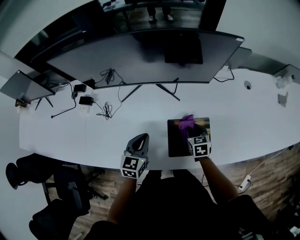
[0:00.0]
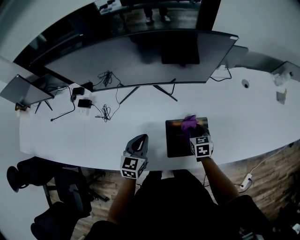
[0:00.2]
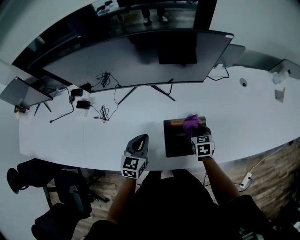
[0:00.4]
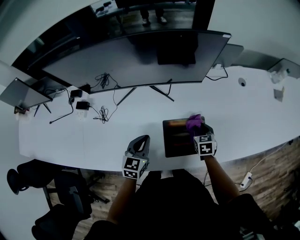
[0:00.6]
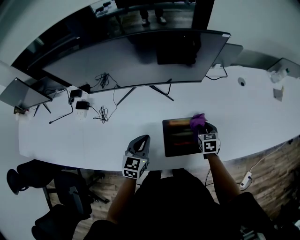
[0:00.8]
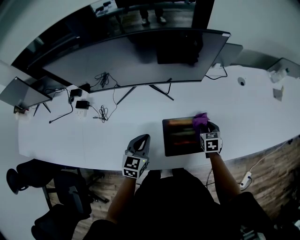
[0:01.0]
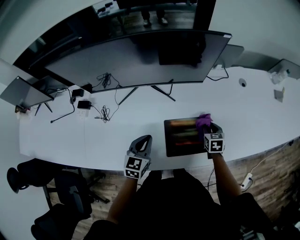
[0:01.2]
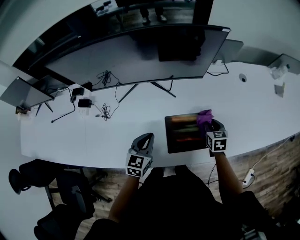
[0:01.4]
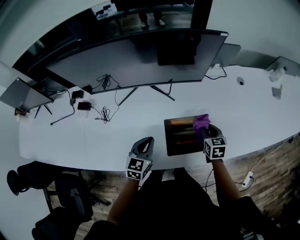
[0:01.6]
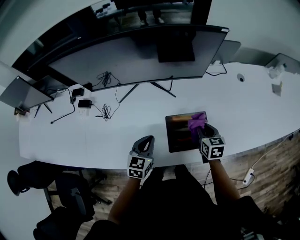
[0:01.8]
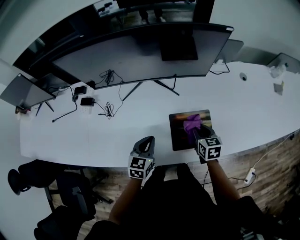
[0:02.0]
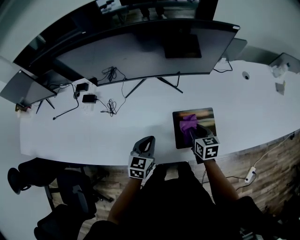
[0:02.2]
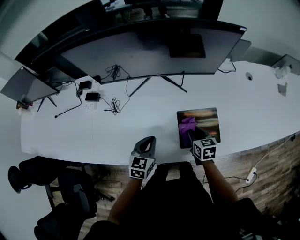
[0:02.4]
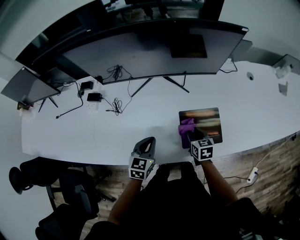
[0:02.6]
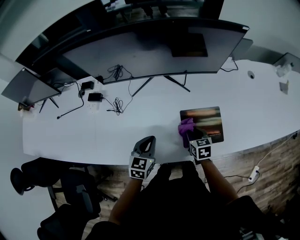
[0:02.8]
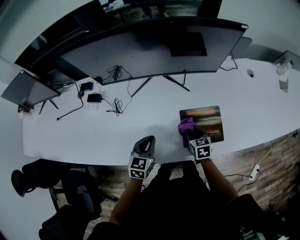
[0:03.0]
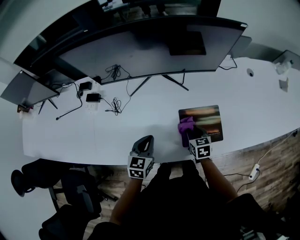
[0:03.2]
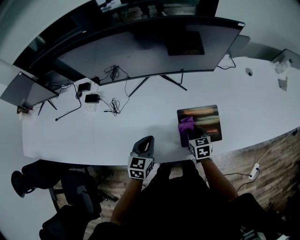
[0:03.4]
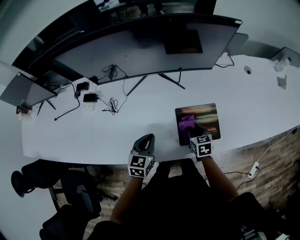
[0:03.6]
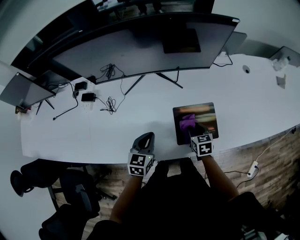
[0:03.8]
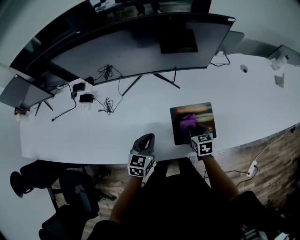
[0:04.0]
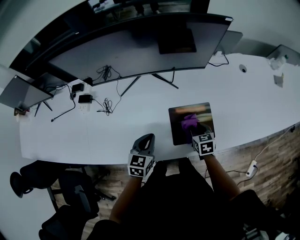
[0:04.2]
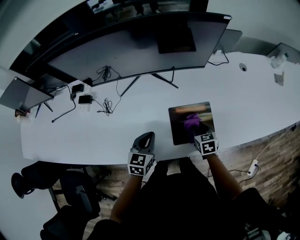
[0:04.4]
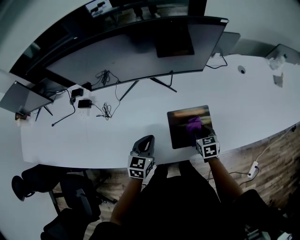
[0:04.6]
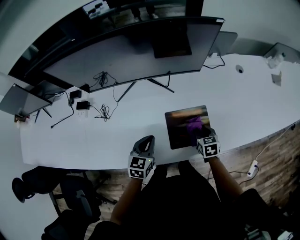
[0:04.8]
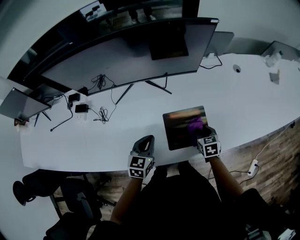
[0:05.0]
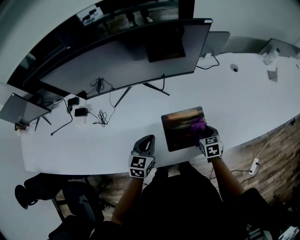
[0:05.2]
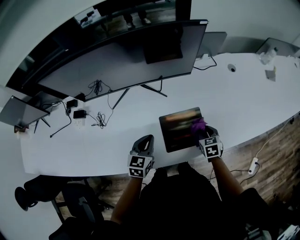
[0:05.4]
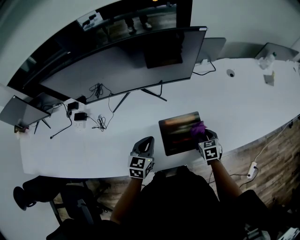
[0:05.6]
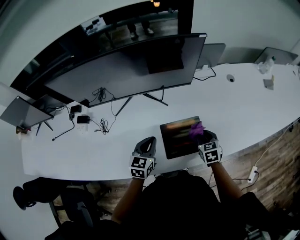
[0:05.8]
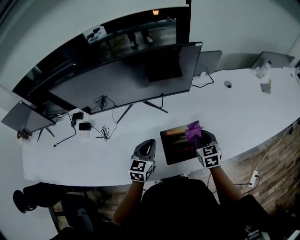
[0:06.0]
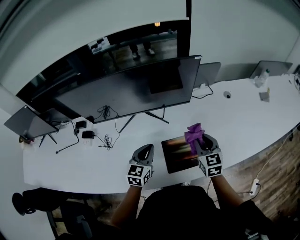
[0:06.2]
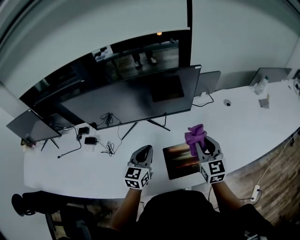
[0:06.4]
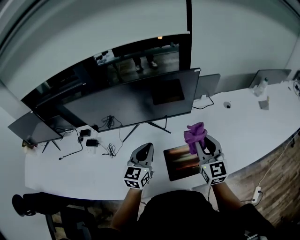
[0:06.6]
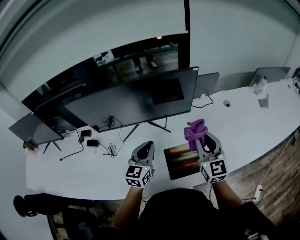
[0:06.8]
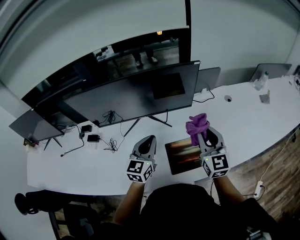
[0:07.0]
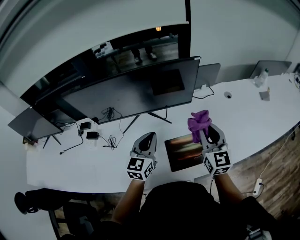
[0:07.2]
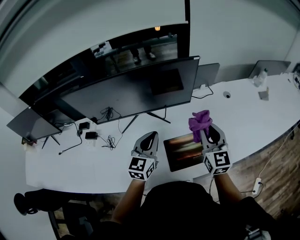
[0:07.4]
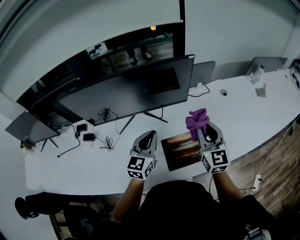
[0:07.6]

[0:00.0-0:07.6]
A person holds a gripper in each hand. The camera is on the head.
0:00.0 to 0:01.6: The right gripper is displaced to the right and upward by some 10 cm.
0:01.6 to 0:03.0: The right gripper is displaced to the left by about 15 cm; the left gripper moves to the left, approximately 10 cm.
0:03.0 to 0:04.6: The left gripper goes roughly 5 cm to the right; the right gripper is displaced to the right by about 10 cm.
0:04.6 to 0:06.0: The left gripper travels forward and upward by approximately 10 cm, while the right gripper goes approximately 10 cm upward.
0:06.0 to 0:07.6: The right gripper moves upward, about 20 cm, and angles its fingers upward, by about 30 degrees. Meanwhile the left gripper is displaced upward by some 10 cm.

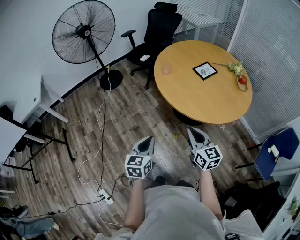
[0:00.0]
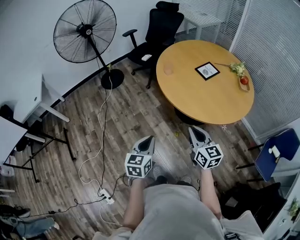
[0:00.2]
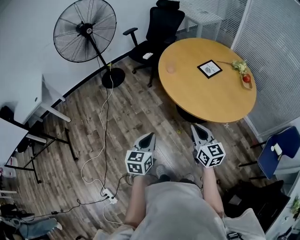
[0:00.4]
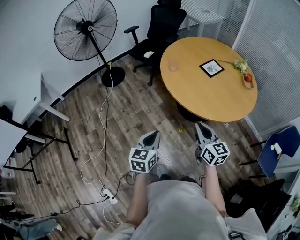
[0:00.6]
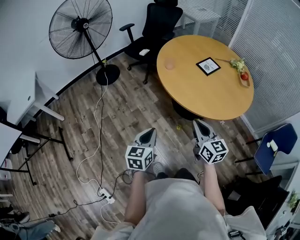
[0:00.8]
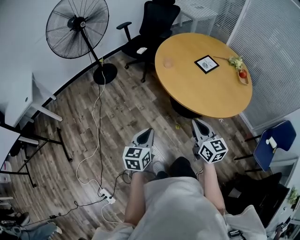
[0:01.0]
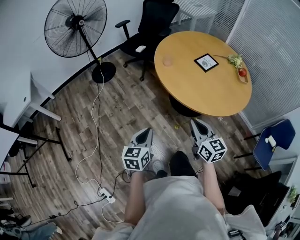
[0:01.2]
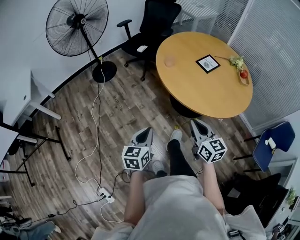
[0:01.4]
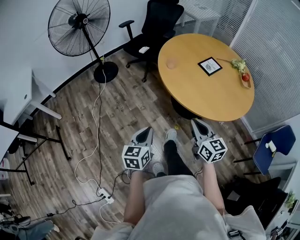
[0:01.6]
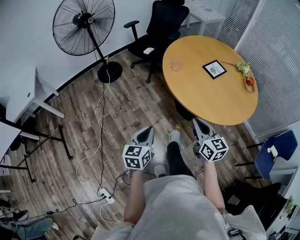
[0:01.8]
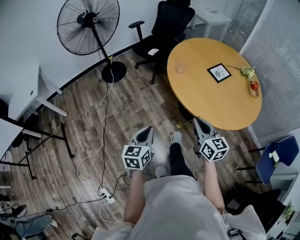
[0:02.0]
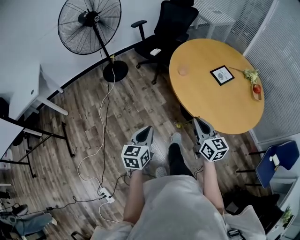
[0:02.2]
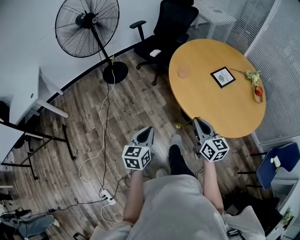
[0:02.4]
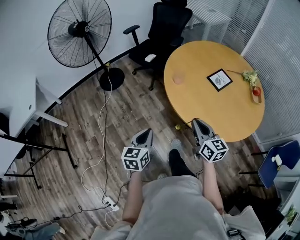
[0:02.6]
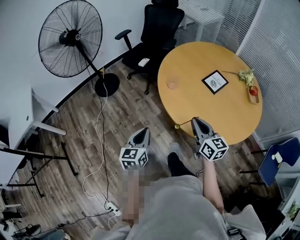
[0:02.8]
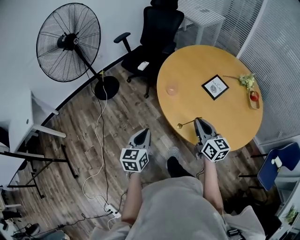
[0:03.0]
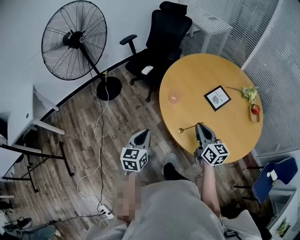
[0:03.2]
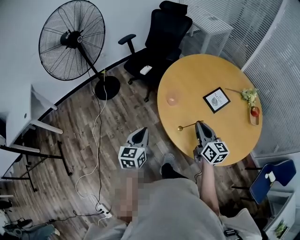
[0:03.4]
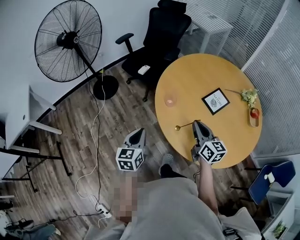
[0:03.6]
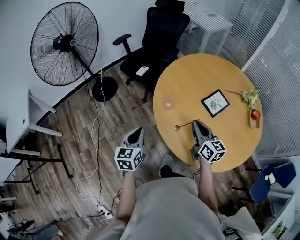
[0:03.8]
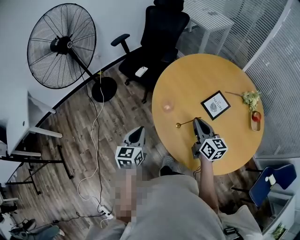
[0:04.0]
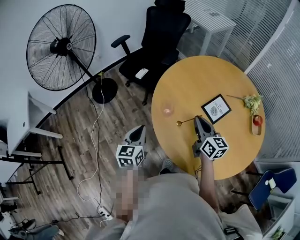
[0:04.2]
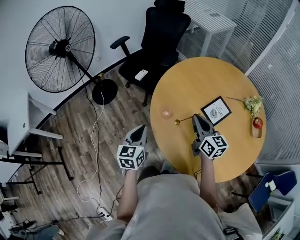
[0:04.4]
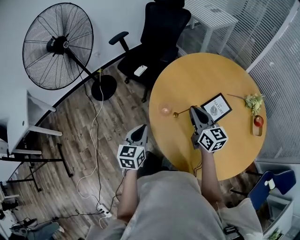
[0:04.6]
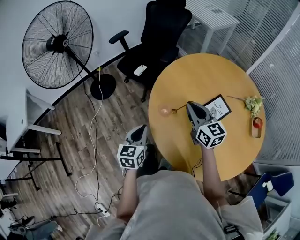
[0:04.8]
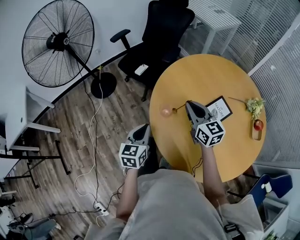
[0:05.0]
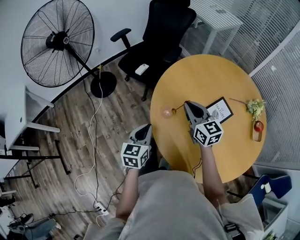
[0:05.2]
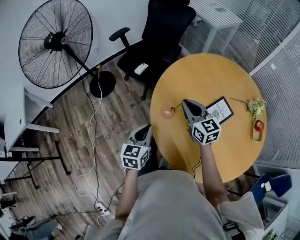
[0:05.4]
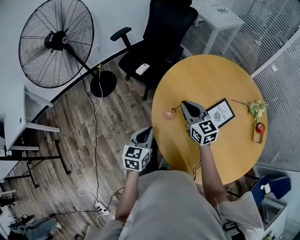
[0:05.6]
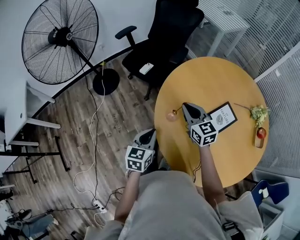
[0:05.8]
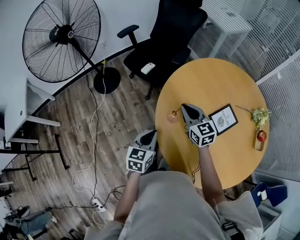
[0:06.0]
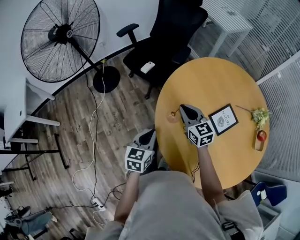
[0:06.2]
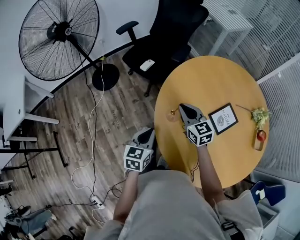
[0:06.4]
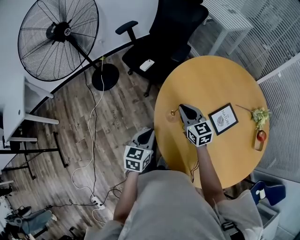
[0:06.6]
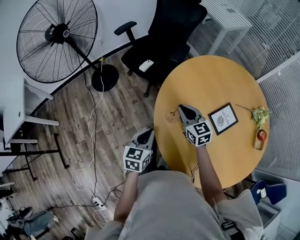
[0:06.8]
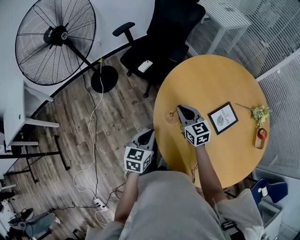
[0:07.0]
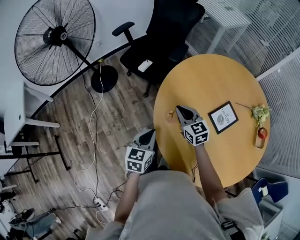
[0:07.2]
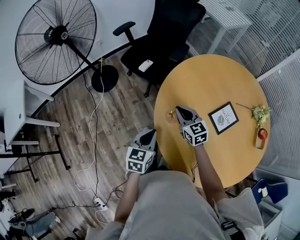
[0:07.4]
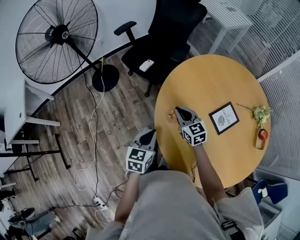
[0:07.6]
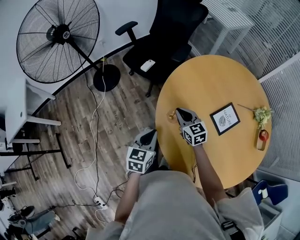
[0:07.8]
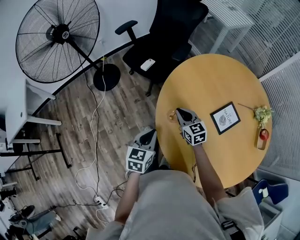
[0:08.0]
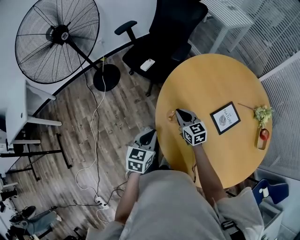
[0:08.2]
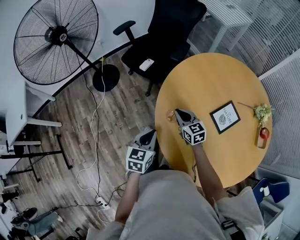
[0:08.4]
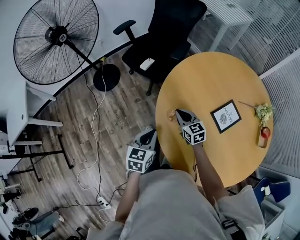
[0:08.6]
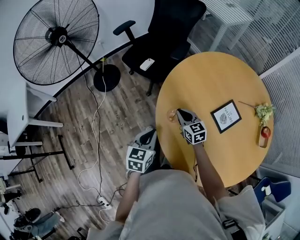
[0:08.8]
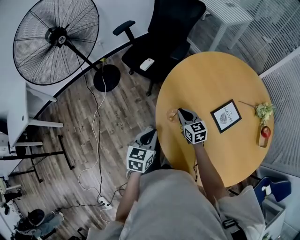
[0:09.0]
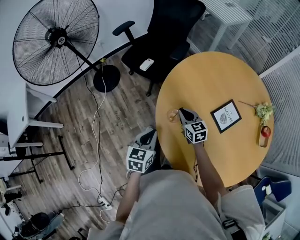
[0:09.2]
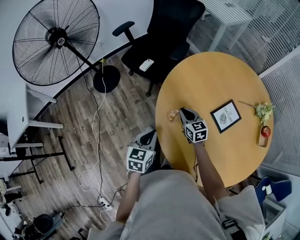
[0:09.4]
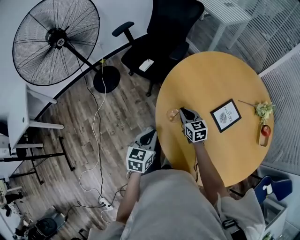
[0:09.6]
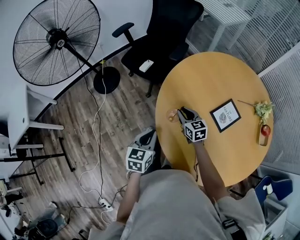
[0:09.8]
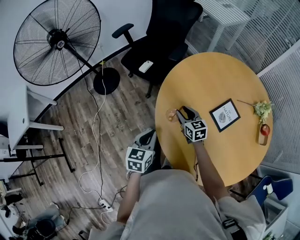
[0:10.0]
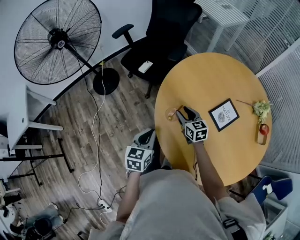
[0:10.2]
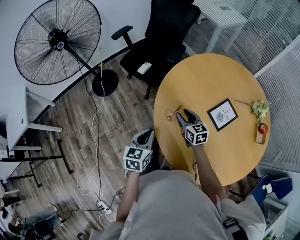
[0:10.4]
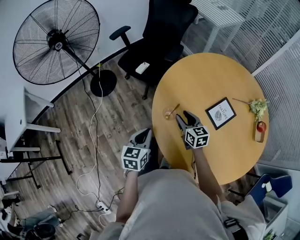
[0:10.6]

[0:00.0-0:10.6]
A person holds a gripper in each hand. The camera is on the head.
0:00.0 to 0:01.6: The two grippers go some 10 cm to the left and forward.
0:01.6 to 0:03.0: The two grippers go some 25 cm forward.
0:03.0 to 0:04.6: Both grippers travel together forward, approximately 20 cm.
0:04.6 to 0:06.0: The right gripper moves forward, to the left and downward, about 15 cm, and turns by about 20 degrees.
0:06.0 to 0:07.6: The right gripper goes roughly 5 cm downward.
0:07.6 to 0:09.0: The right gripper is displaced downward by approximately 5 cm.
0:09.0 to 0:10.6: The right gripper shifts by about 5 cm, and opens up.

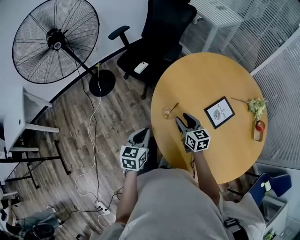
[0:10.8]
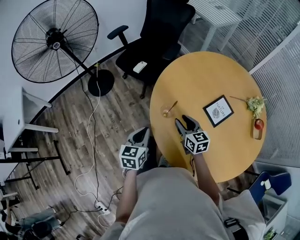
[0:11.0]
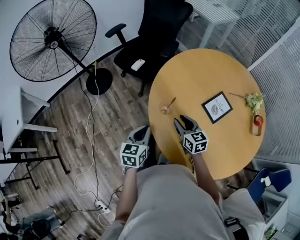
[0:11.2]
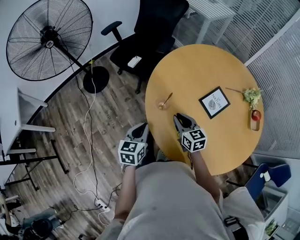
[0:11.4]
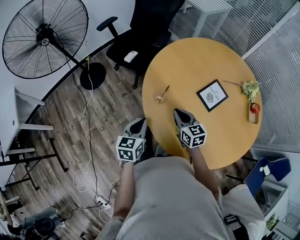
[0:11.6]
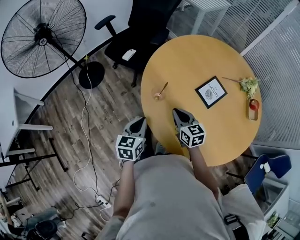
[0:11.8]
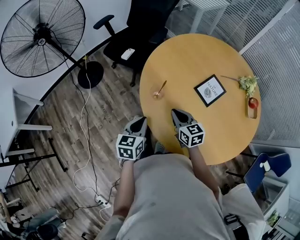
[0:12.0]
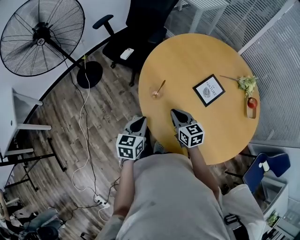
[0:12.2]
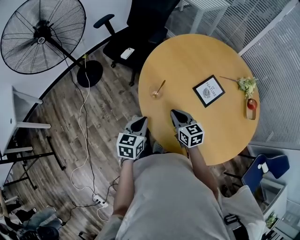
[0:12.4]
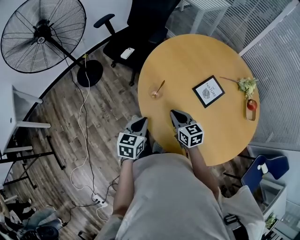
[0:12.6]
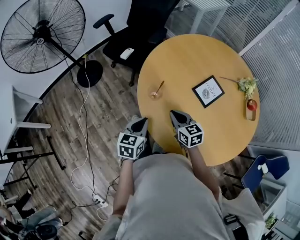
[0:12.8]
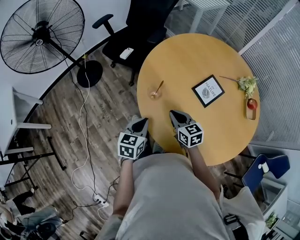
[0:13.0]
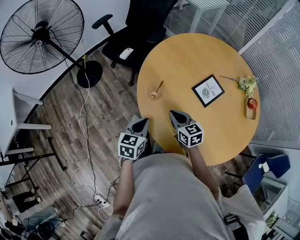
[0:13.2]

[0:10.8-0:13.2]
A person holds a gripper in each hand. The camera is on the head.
0:10.8 to 0:12.0: The right gripper is displaced backward by approximately 10 cm, and closes its fingers. The left gripper ends up about 5 cm from where it was.
0:12.0 to 0:13.2: The grippers make only small movements.

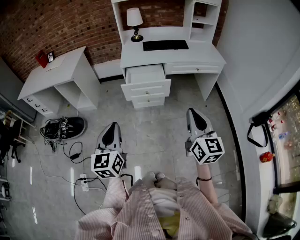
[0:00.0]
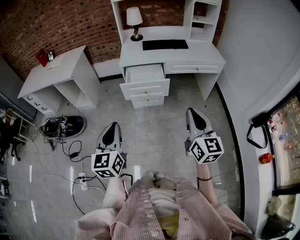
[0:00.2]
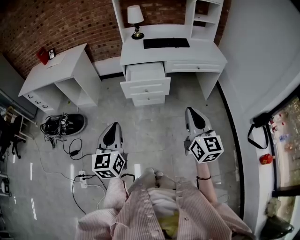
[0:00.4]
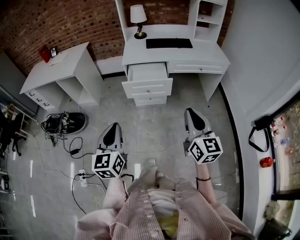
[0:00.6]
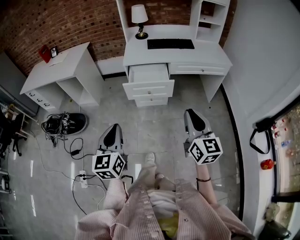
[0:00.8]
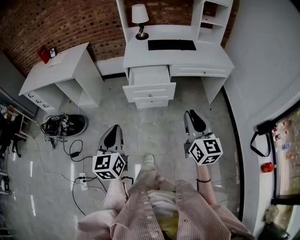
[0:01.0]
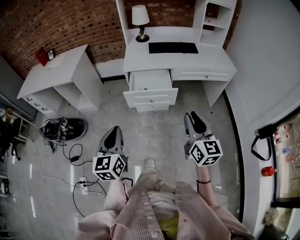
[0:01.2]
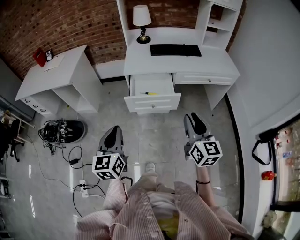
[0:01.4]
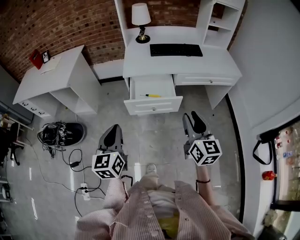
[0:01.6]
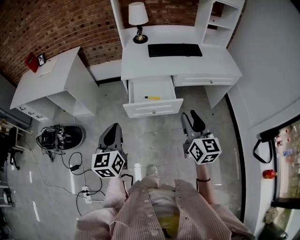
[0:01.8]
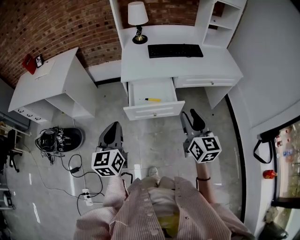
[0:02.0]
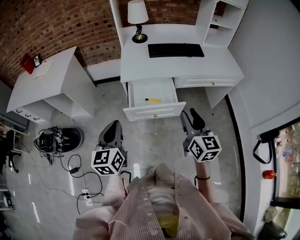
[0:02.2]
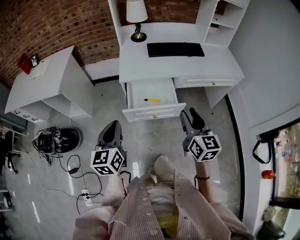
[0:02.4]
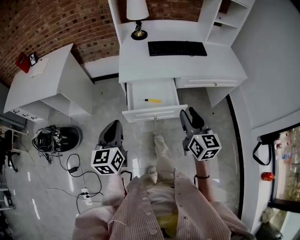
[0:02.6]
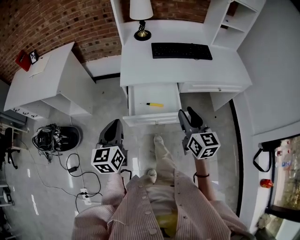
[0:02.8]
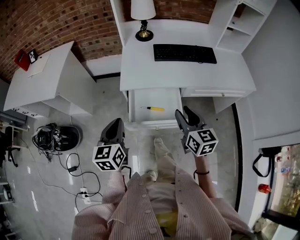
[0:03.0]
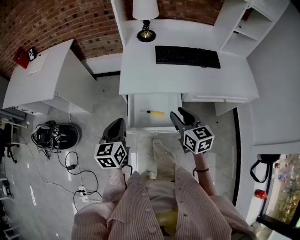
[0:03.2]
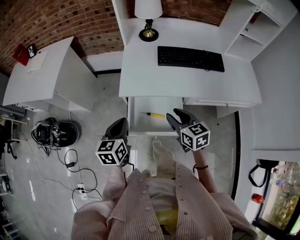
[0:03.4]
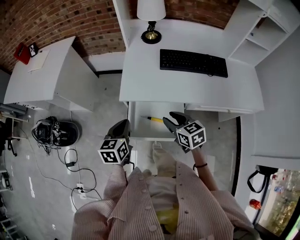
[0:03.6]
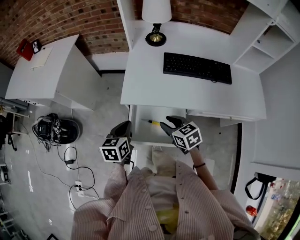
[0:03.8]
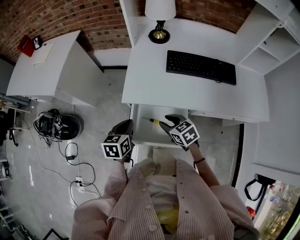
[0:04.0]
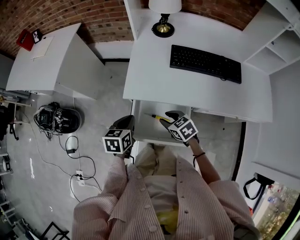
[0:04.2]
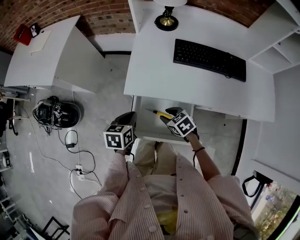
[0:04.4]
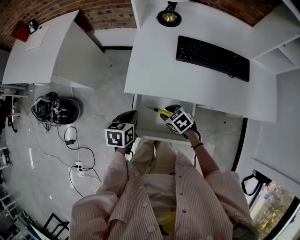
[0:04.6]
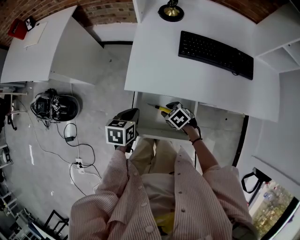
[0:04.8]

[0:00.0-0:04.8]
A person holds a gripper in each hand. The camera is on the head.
0:00.0 to 0:01.6: The grippers both shift forward by roughly 20 cm. The right gripper opens.
0:01.6 to 0:03.2: The two grippers go some 30 cm forward. The right gripper turns by roughly 20 degrees.
0:03.2 to 0:04.8: The left gripper moves downward and forward, roughly 15 cm, and rotates about 30 degrees, while the right gripper moves downward and forward, about 30 cm, and tilts its fingers roughly 40 degrees downward.
